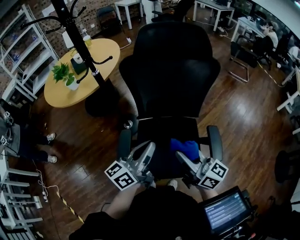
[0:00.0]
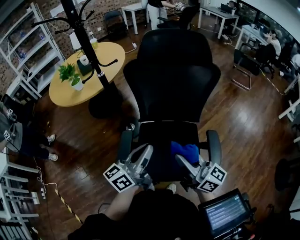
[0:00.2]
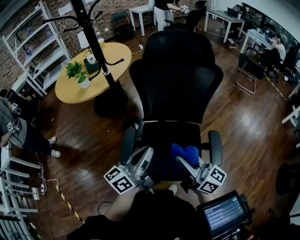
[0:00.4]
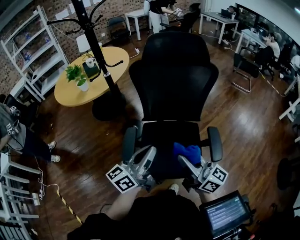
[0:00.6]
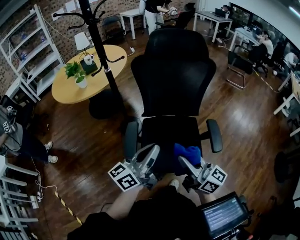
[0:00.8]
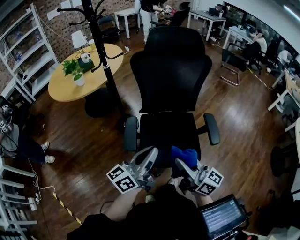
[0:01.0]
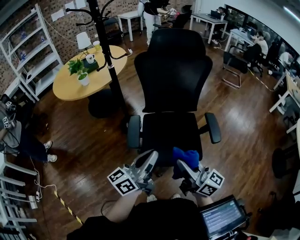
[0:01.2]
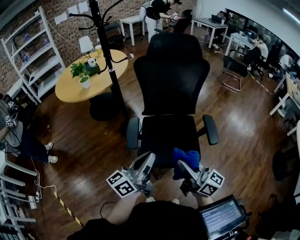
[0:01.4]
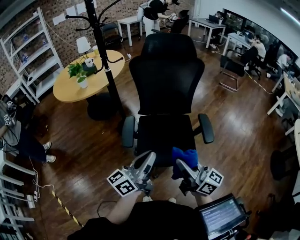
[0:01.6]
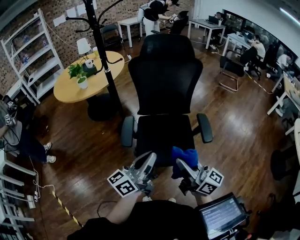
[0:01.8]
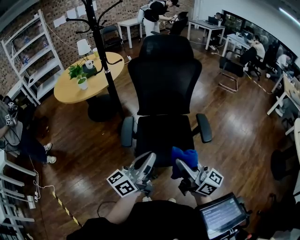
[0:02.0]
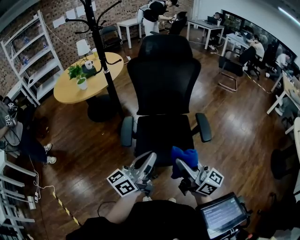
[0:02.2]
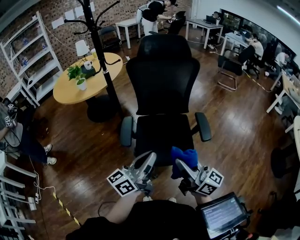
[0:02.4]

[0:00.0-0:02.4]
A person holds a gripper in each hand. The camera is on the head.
0:00.0 to 0:01.2: Both grippers move backward, approximately 20 cm.
0:01.2 to 0:02.4: The left gripper travels to the right and backward by about 5 cm. Meanwhile the right gripper moves to the right, approximately 5 cm.

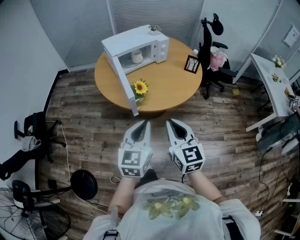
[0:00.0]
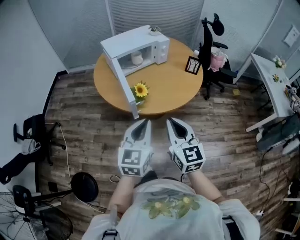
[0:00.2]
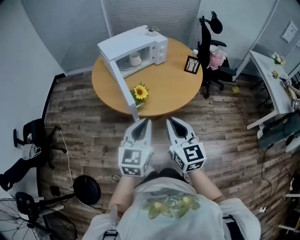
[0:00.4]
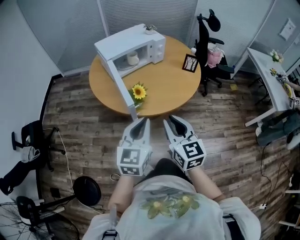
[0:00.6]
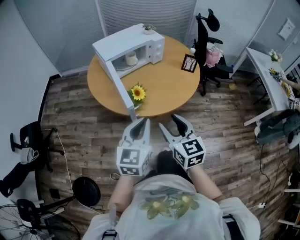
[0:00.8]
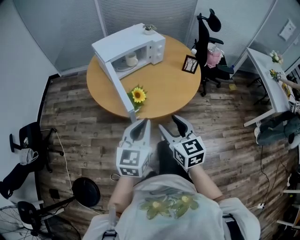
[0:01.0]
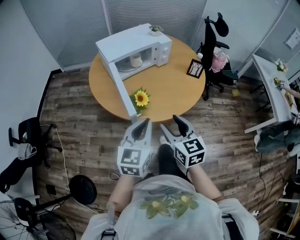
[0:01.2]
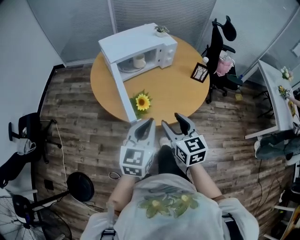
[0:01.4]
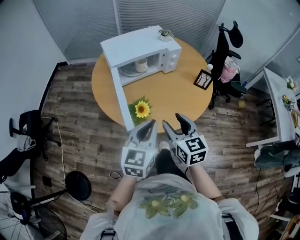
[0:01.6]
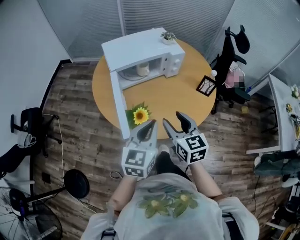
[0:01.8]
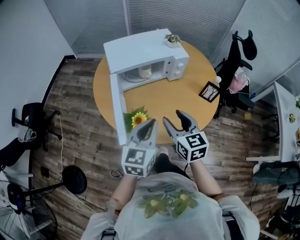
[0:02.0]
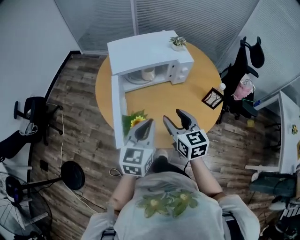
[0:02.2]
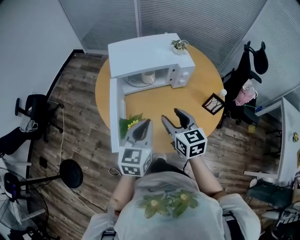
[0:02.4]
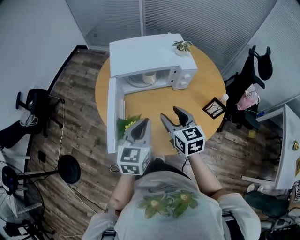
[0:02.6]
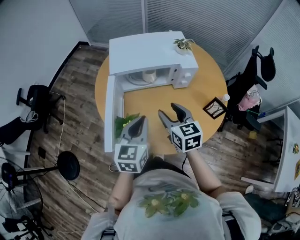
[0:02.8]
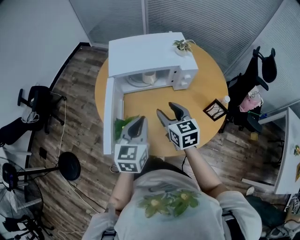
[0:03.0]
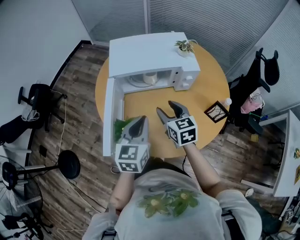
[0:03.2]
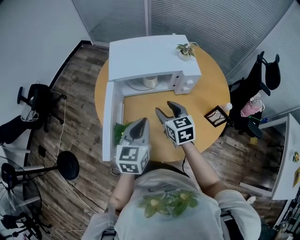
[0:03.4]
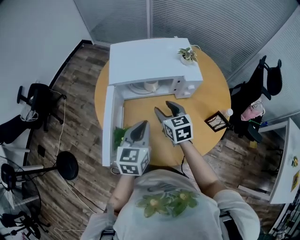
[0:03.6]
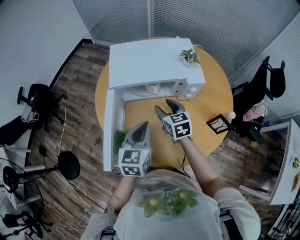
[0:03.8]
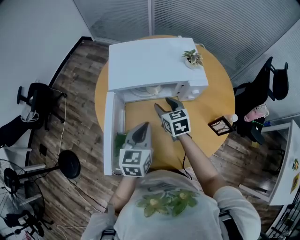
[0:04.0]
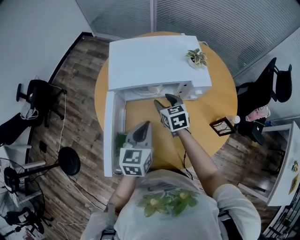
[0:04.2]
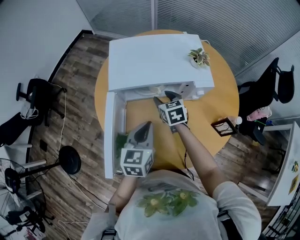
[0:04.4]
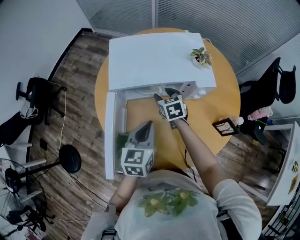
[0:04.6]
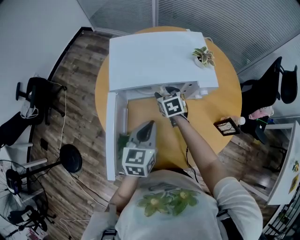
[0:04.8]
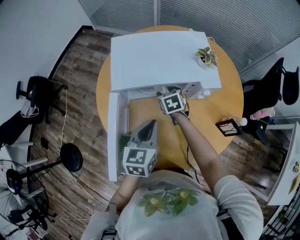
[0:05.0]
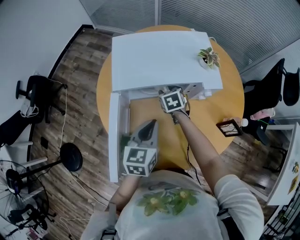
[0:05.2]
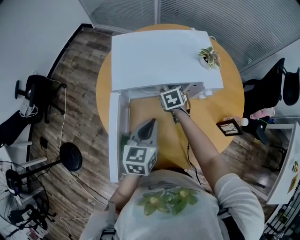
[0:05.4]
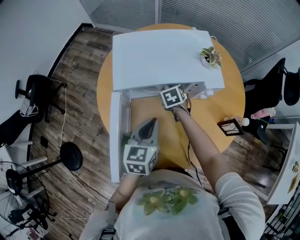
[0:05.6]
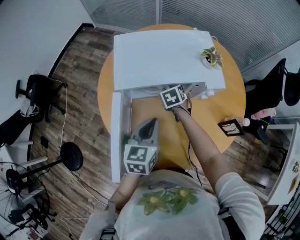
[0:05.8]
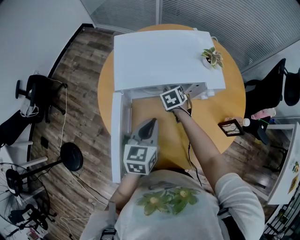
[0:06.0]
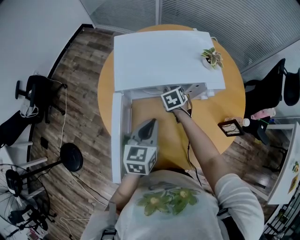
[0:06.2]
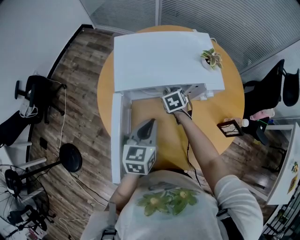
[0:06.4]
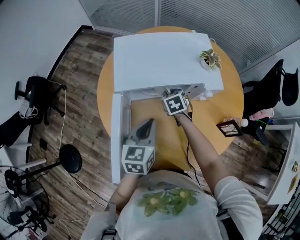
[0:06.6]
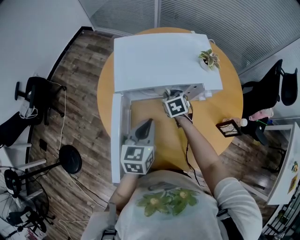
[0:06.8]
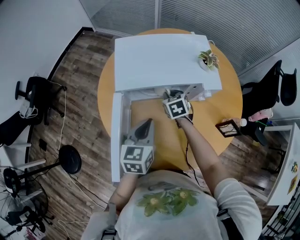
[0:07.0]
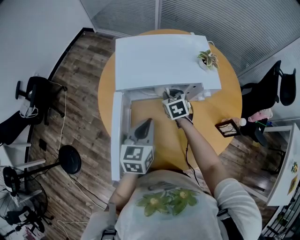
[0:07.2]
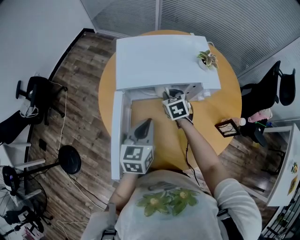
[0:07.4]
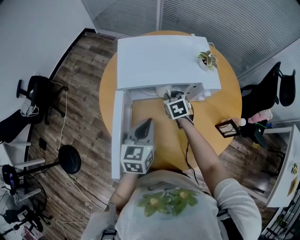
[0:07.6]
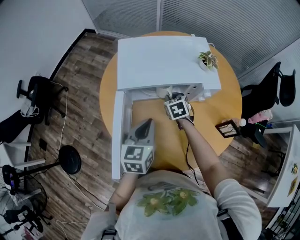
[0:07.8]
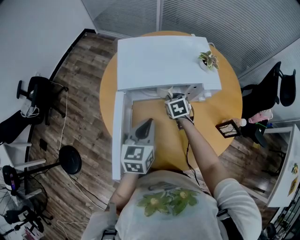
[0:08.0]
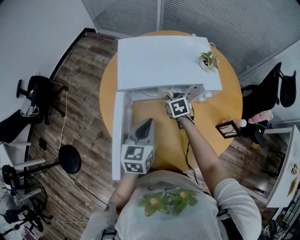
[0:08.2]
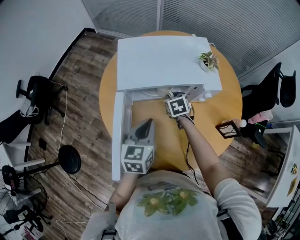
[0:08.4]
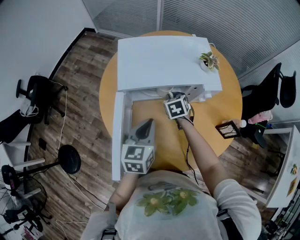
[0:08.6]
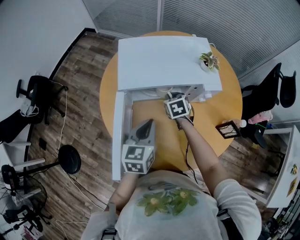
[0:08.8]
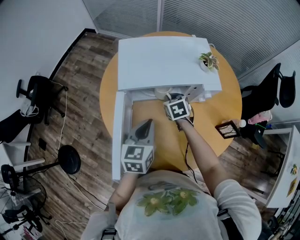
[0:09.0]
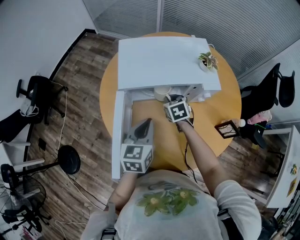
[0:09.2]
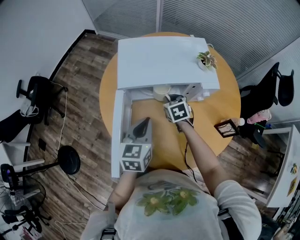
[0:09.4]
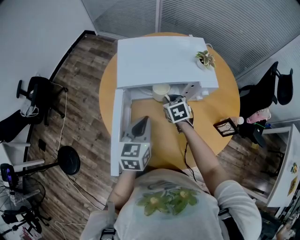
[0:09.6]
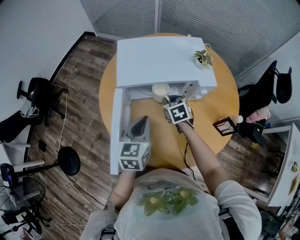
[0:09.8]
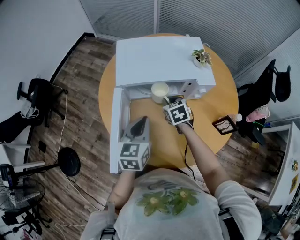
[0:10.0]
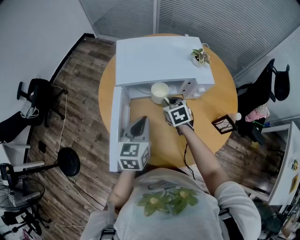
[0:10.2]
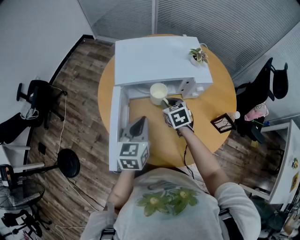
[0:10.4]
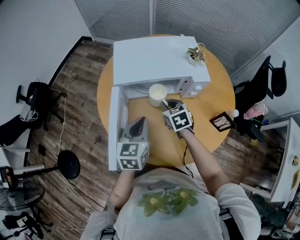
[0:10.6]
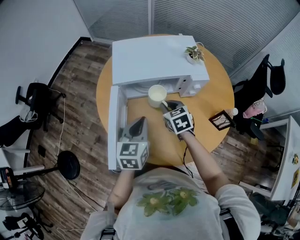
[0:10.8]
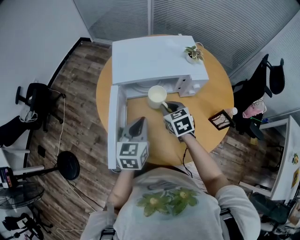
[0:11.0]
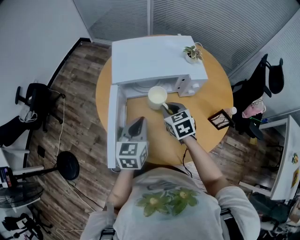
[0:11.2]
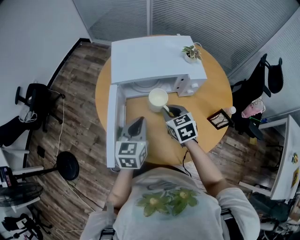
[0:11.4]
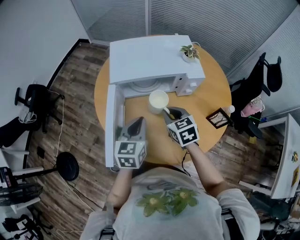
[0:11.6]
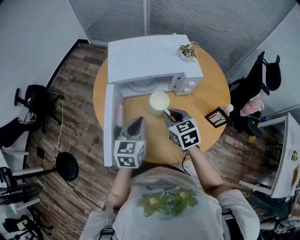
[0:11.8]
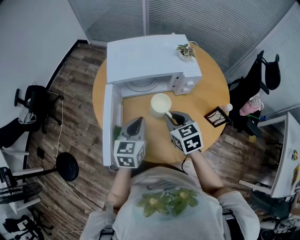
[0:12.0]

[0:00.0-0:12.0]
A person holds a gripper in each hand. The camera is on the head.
0:00.0 to 0:01.6: Both grippers move forward, roughly 20 cm. The right gripper opens its fingers.
0:01.6 to 0:03.0: The two grippers go roughly 20 cm forward. The right gripper turns by about 20 degrees. The left gripper swivels some 30 degrees.
0:03.0 to 0:04.4: The right gripper travels forward and downward by roughly 20 cm. The left gripper shifts some 10 cm forward and downward.
0:04.4 to 0:06.0: The right gripper heads downward and forward, covering approximately 10 cm, rotates some 20 degrees, and closes.
0:06.0 to 0:07.6: The right gripper ends up some 5 cm from where it was.
0:07.6 to 0:09.0: The grippers make only small movements.
0:09.0 to 0:10.4: The right gripper is displaced backward by about 5 cm.
0:10.4 to 0:12.0: The right gripper heads backward and upward, covering approximately 15 cm.

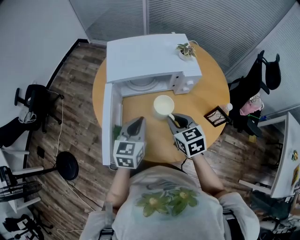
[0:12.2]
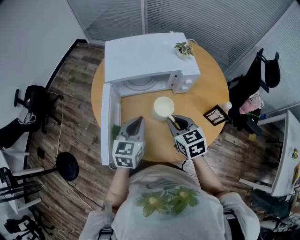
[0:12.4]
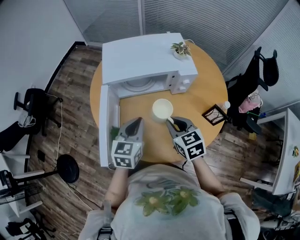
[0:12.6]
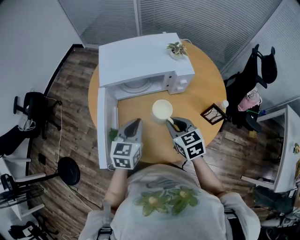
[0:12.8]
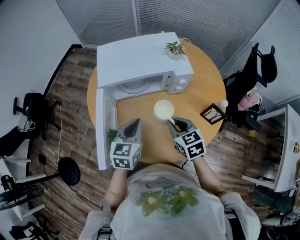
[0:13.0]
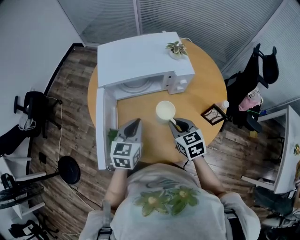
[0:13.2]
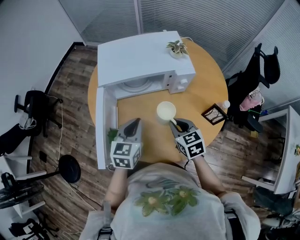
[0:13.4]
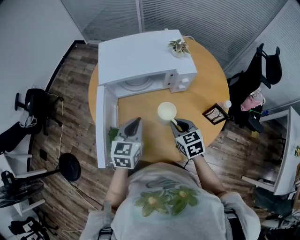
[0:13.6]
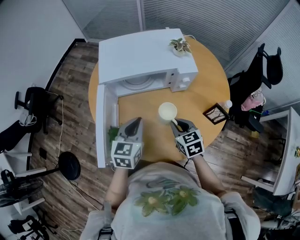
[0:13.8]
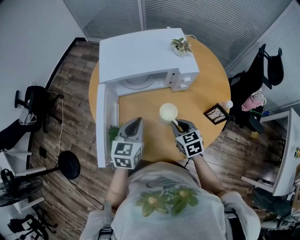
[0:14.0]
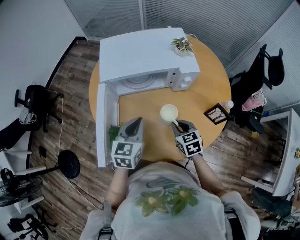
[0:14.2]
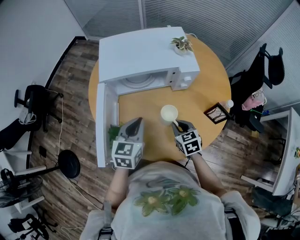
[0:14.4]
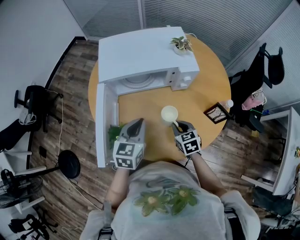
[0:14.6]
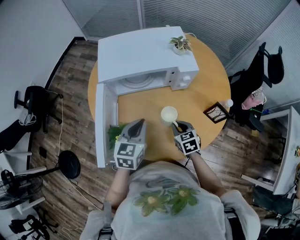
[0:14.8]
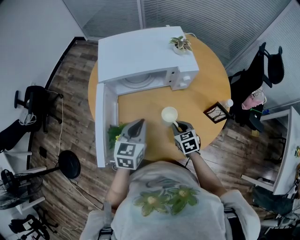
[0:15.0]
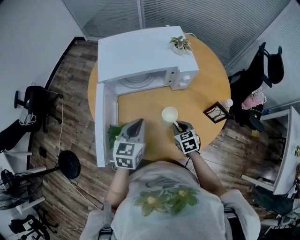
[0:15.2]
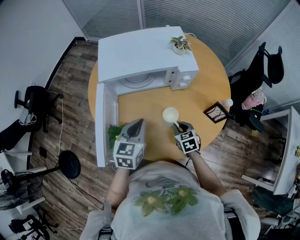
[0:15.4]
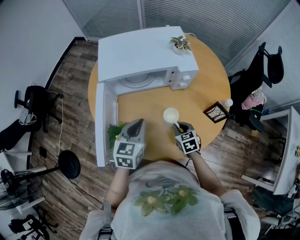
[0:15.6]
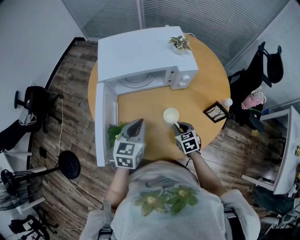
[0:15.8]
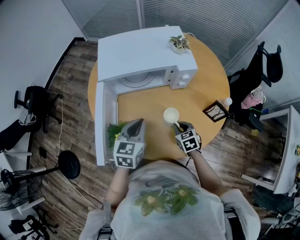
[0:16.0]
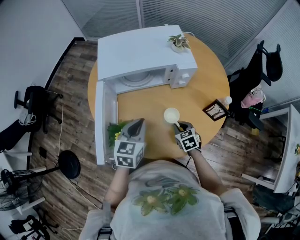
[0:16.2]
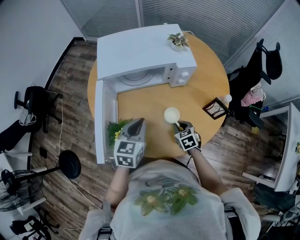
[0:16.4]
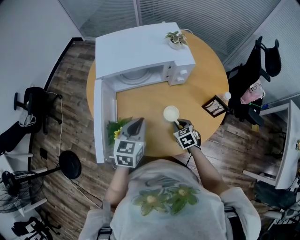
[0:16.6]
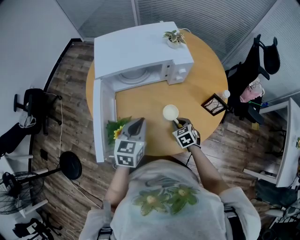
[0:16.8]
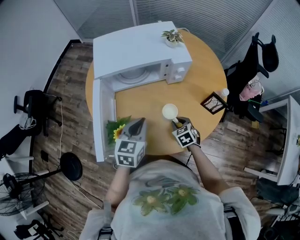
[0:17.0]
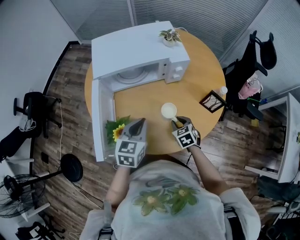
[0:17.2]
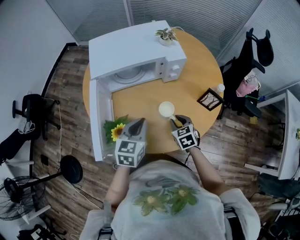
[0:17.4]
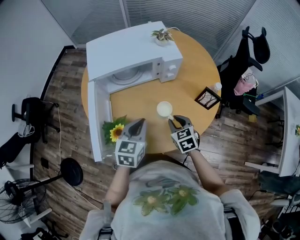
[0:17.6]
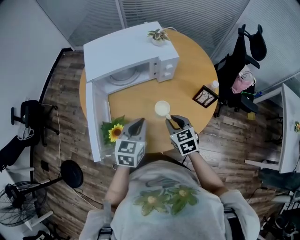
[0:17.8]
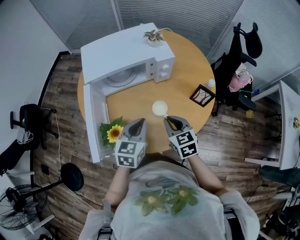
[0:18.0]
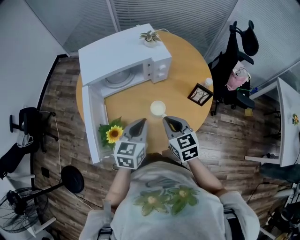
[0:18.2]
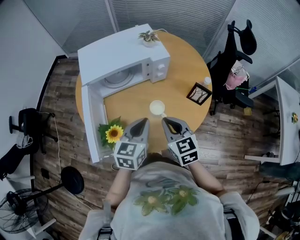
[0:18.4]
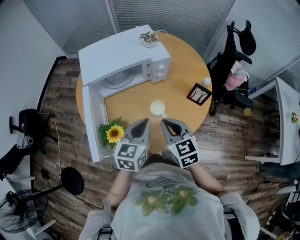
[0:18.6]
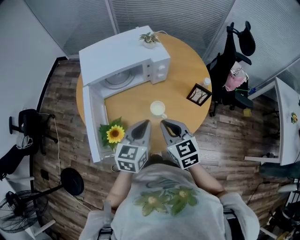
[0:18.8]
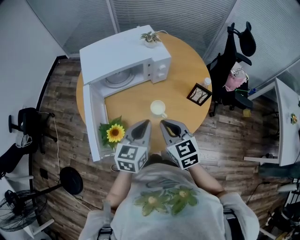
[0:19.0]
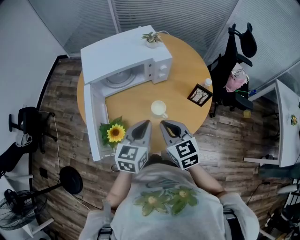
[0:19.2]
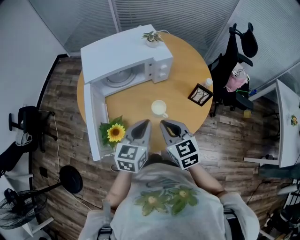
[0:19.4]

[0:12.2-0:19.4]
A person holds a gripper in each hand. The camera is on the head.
0:12.2 to 0:13.6: The right gripper shifts roughly 5 cm downward.
0:13.6 to 0:15.0: The right gripper travels downward by some 10 cm.
0:15.0 to 0:16.6: The grippers stay close to where they were, moving slightly.
0:16.6 to 0:18.0: The left gripper goes about 5 cm to the right. The right gripper shifts approximately 15 cm upward, and changes its angle by some 20 degrees.
0:18.0 to 0:19.4: The right gripper travels upward by roughly 5 cm.

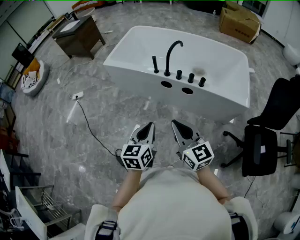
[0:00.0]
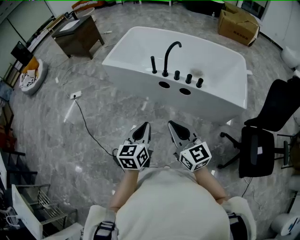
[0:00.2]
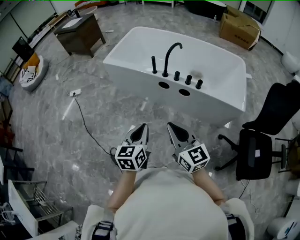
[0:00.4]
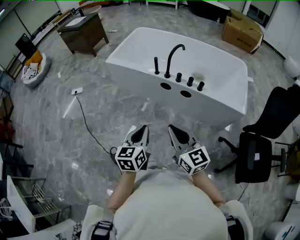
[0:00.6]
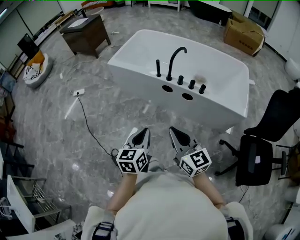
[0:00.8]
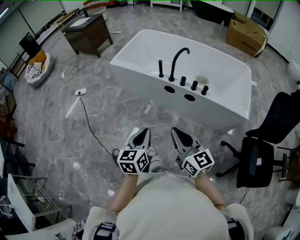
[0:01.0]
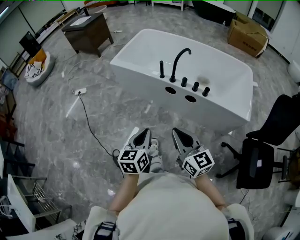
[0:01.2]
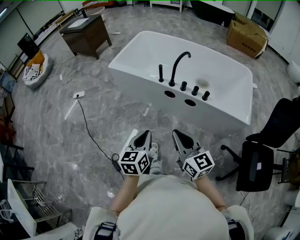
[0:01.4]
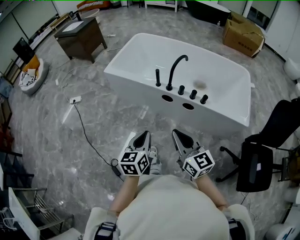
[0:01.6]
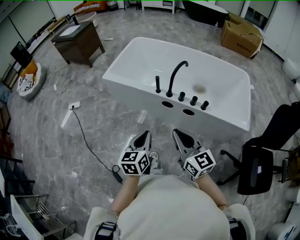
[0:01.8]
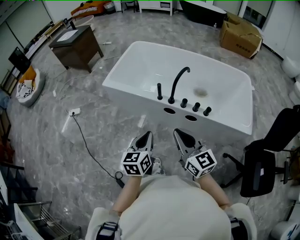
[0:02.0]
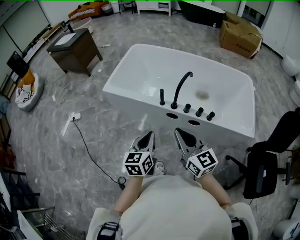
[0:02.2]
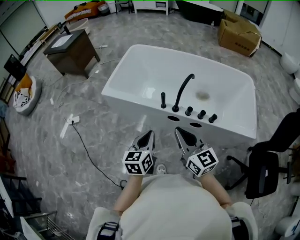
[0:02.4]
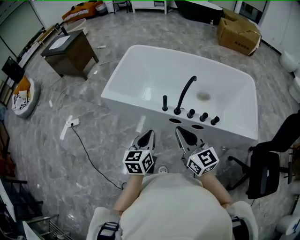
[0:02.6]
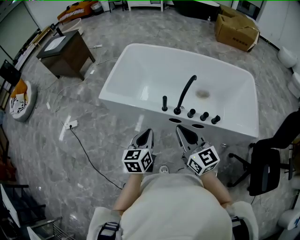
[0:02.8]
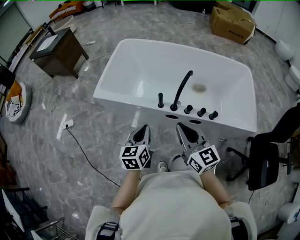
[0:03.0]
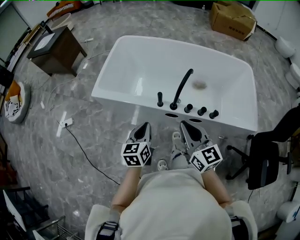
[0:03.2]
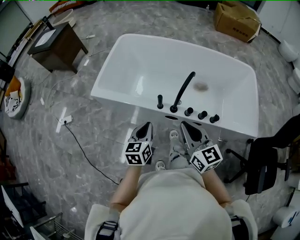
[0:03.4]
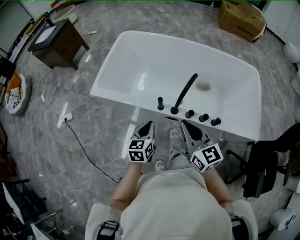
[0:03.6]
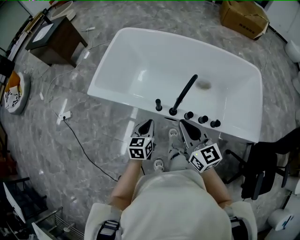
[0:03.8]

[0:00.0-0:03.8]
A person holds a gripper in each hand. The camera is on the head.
0:00.0 to 0:01.2: The grippers make only small movements.
0:01.2 to 0:02.6: Both grippers move forward, roughly 30 cm.
0:02.6 to 0:03.8: The left gripper moves forward and downward, roughly 20 cm. Meanwhile the right gripper moves forward and to the right, about 15 cm.
